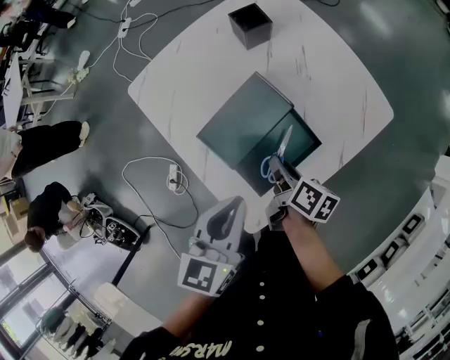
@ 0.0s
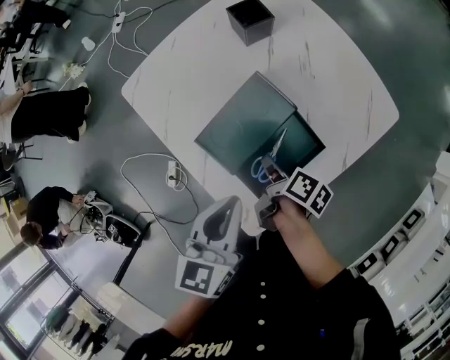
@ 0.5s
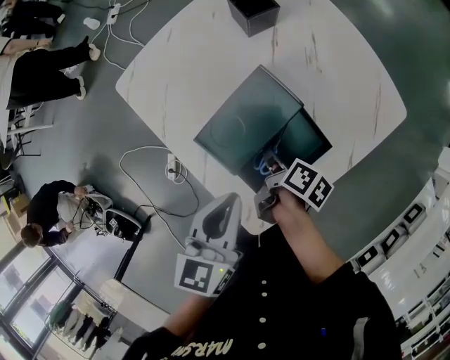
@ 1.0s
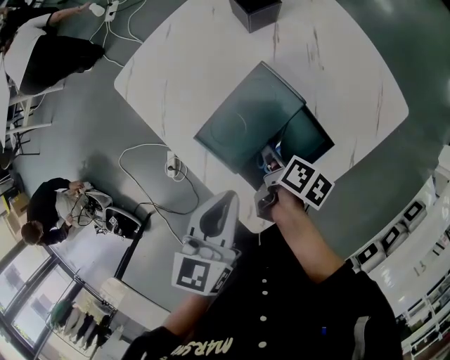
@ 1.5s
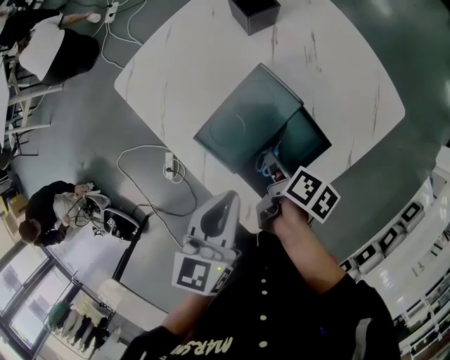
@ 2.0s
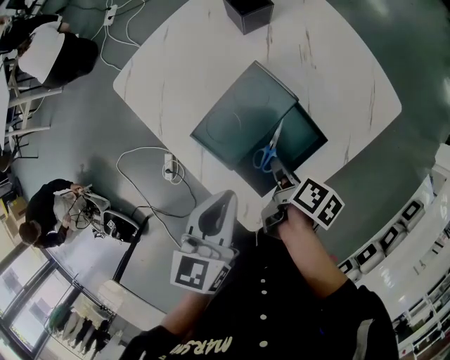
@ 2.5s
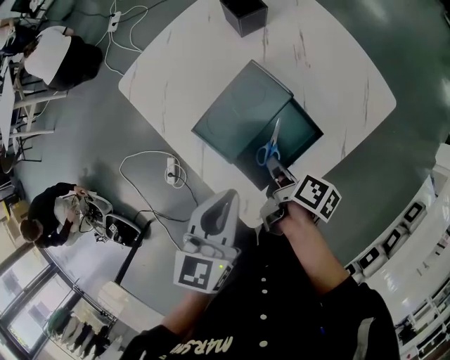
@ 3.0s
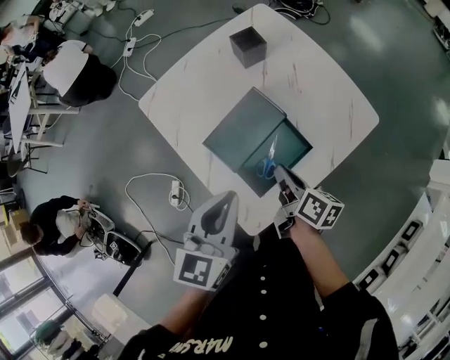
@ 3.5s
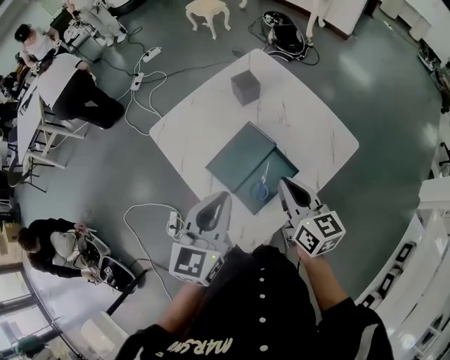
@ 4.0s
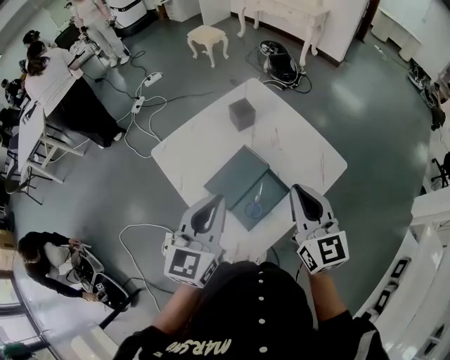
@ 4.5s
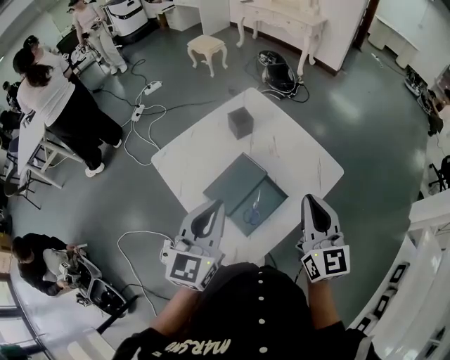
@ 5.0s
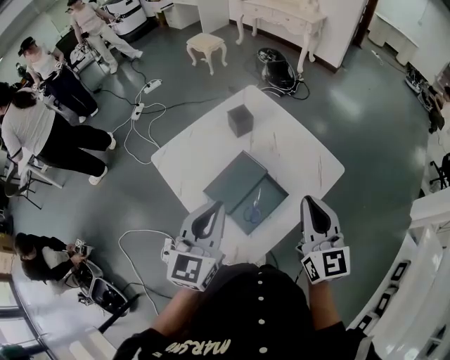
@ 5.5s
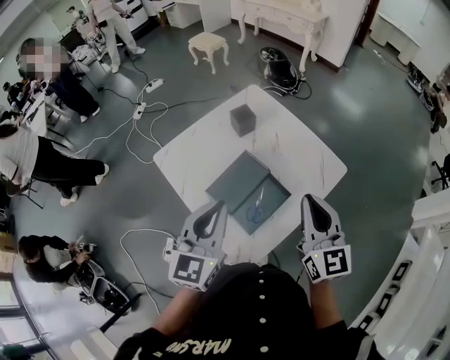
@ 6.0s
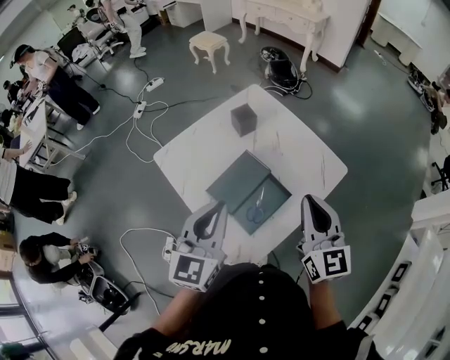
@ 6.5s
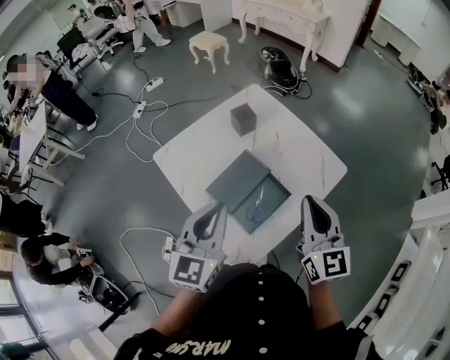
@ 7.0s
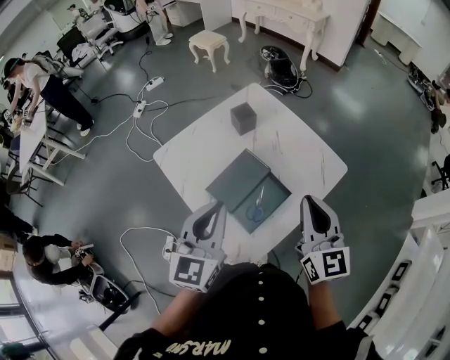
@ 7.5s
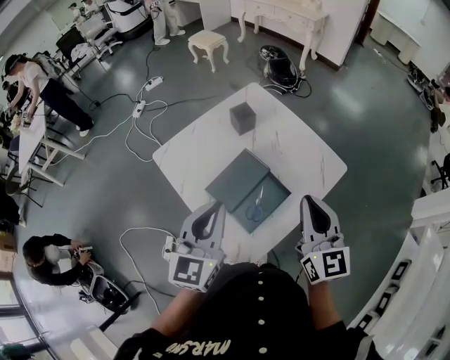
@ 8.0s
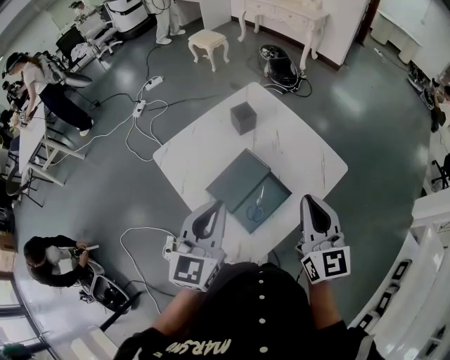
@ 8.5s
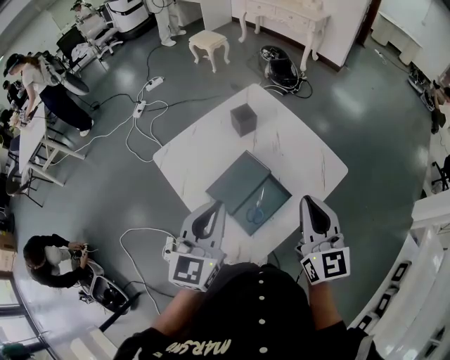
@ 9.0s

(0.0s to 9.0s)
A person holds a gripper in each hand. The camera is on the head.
0.0s - 2.0s: The right gripper swivels approximately 20 degrees, and opens its fingers. Meanwhile the left gripper shifts by approximately 5 cm.
2.0s - 4.5s: The right gripper moves upward, some 35 cm, twists about 70 degrees counterclockwise, seen from behind, and closes, while the left gripper goes roughly 20 cm upward, and rotates roughly 30 degrees.
4.5s - 7.0s: The grippers make only small movements.
7.0s - 9.0s: Both grippers stay about where they are.

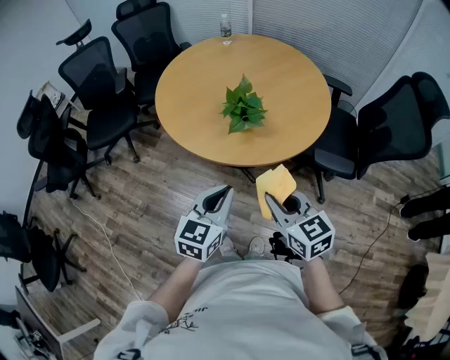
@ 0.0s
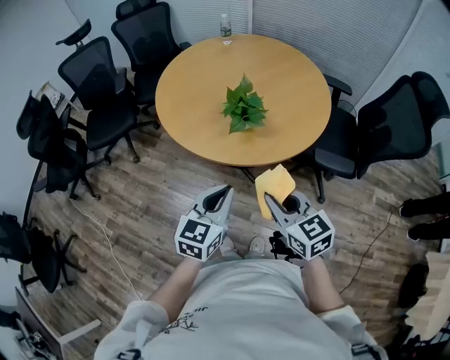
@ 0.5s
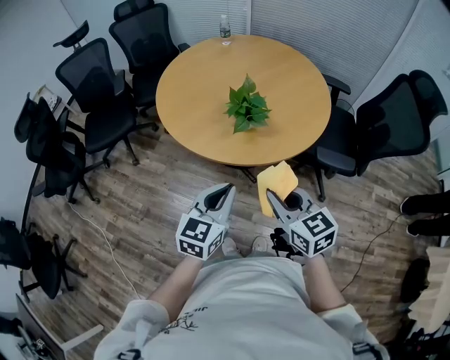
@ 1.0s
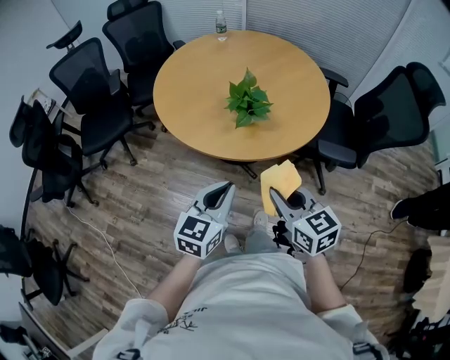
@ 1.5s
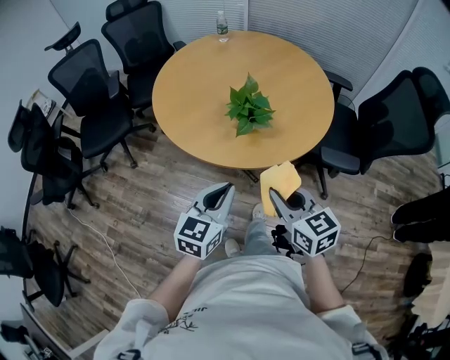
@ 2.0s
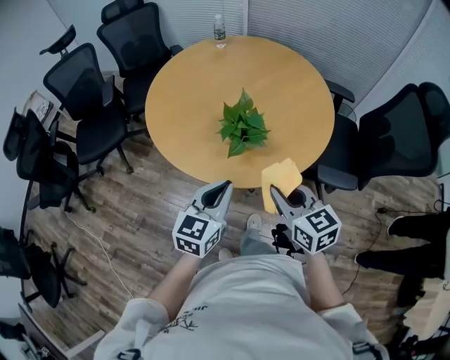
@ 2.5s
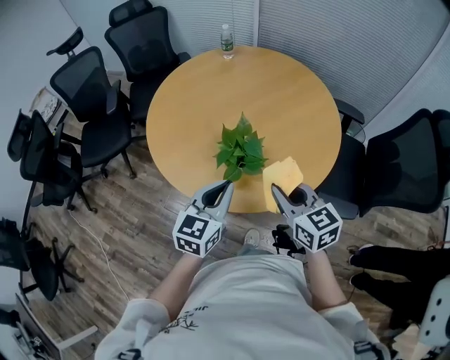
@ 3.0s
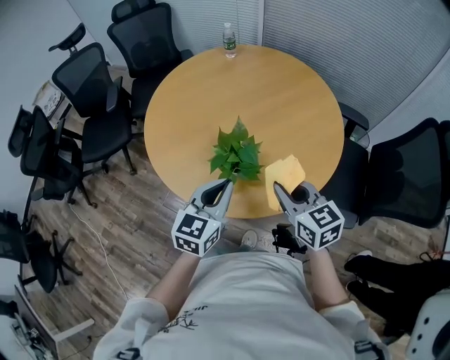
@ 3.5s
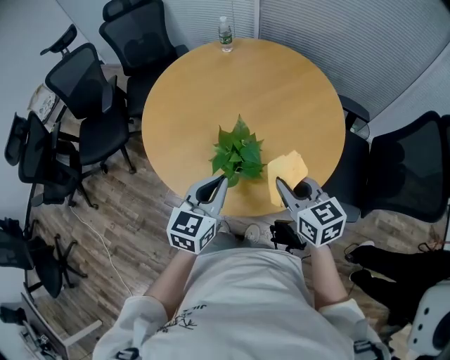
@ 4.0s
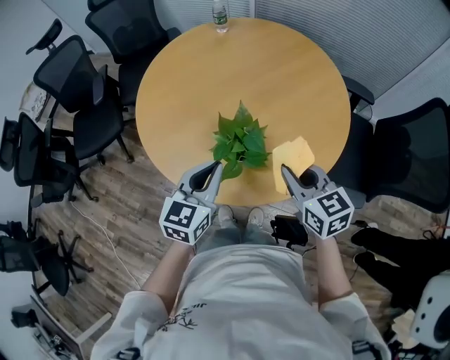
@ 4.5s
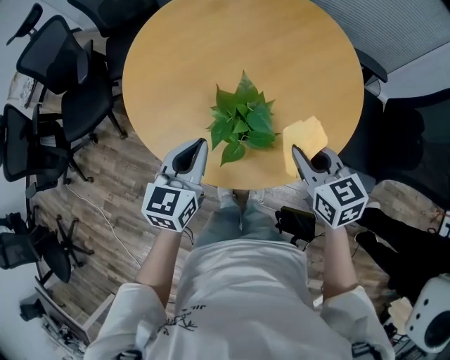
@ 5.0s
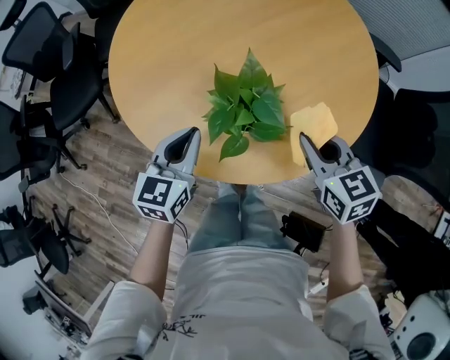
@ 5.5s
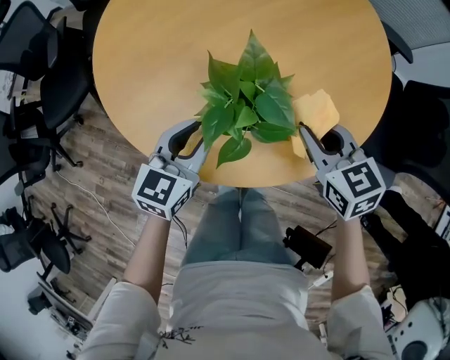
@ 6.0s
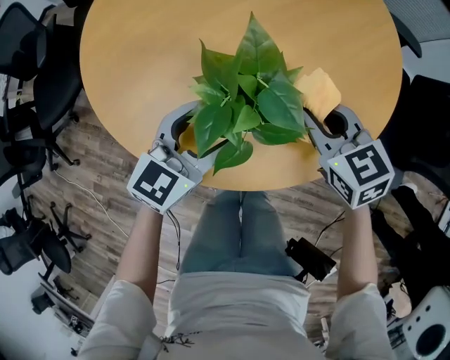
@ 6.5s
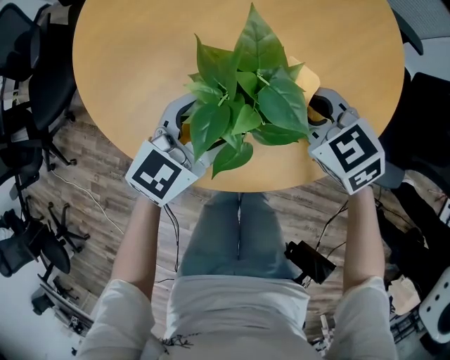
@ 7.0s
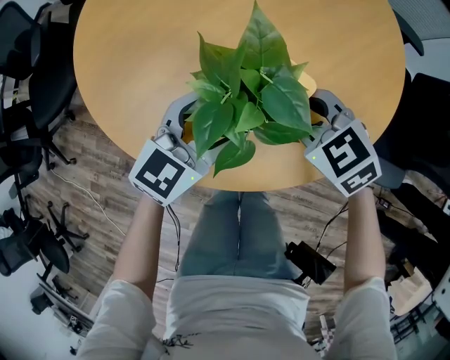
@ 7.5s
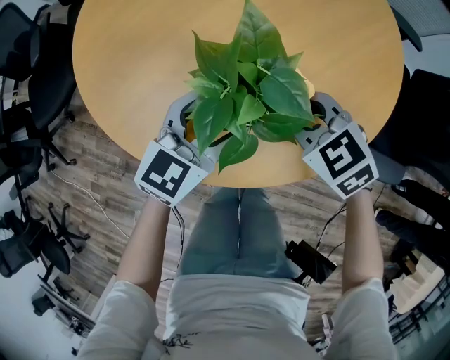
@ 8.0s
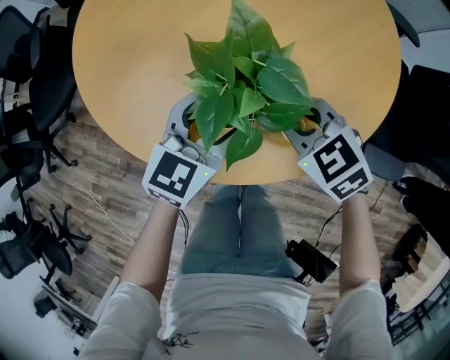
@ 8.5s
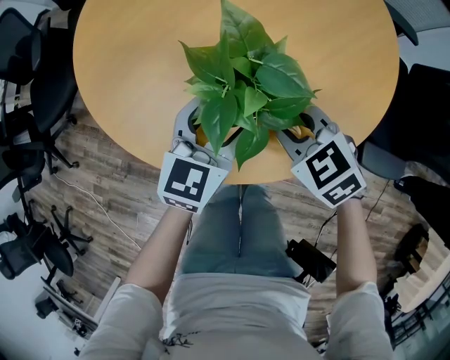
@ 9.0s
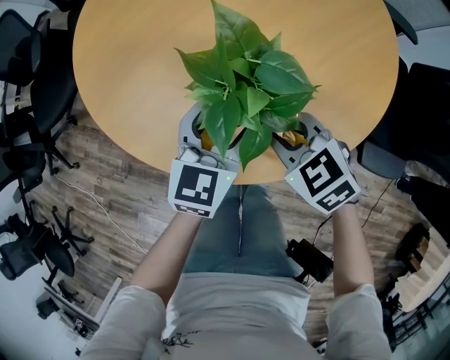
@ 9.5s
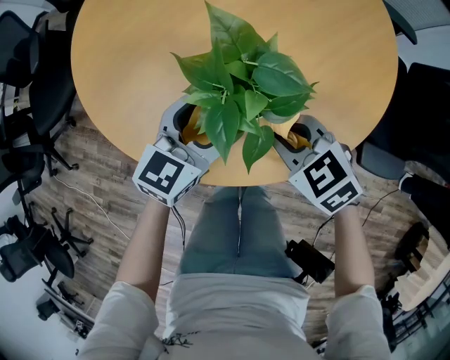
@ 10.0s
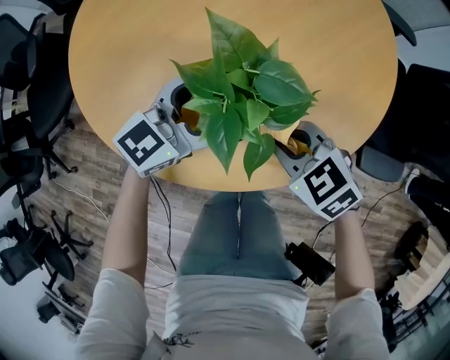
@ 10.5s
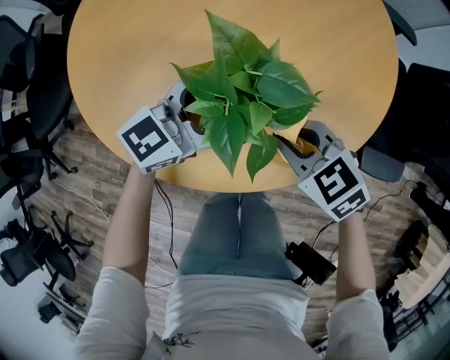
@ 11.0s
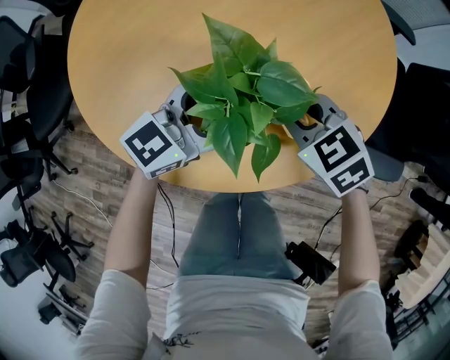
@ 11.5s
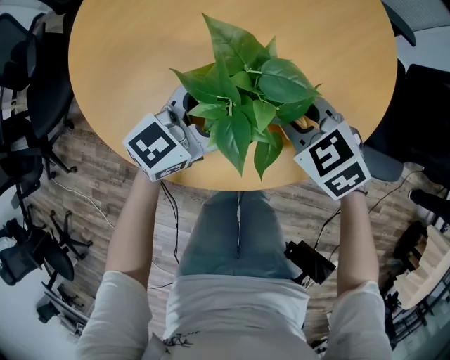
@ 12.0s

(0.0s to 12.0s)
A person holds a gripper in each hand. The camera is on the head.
0.0s - 2.0s: The right gripper shifts by some 5 cm. Meanwhile the left gripper changes place by roughly 5 cm.
2.0s - 4.0s: The left gripper goes approximately 20 cm forward, while the right gripper is displaced forward and to the right by some 25 cm.
4.0s - 6.0s: The two grippers go about 20 cm downward and forward.
6.0s - 8.0s: The left gripper moves to the right, approximately 5 cm, and opens up. The right gripper heads downward and to the left, covering approximately 10 cm, and rotates approximately 30 degrees.
8.0s - 10.0s: The right gripper changes place by roughly 5 cm.
10.0s - 12.0s: The right gripper heads forward, covering roughly 5 cm.

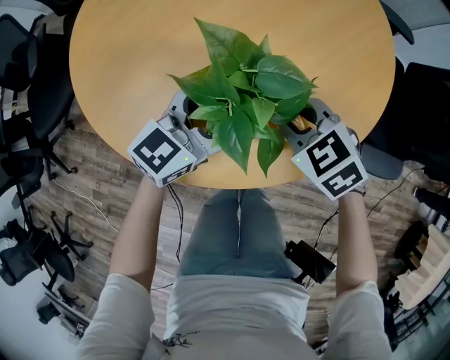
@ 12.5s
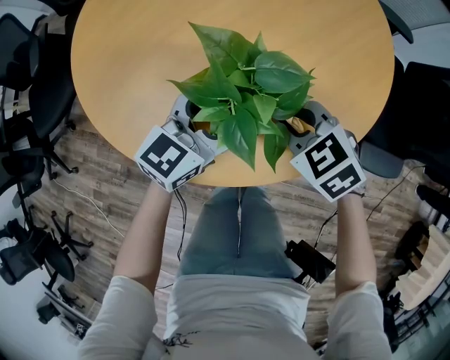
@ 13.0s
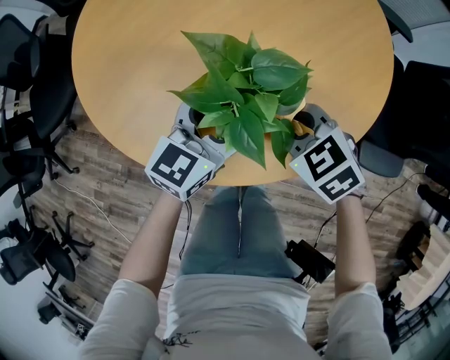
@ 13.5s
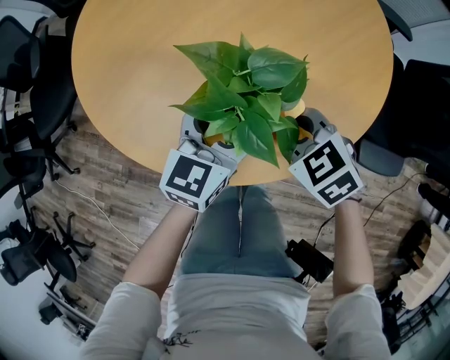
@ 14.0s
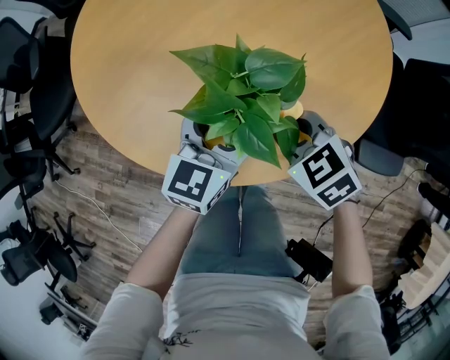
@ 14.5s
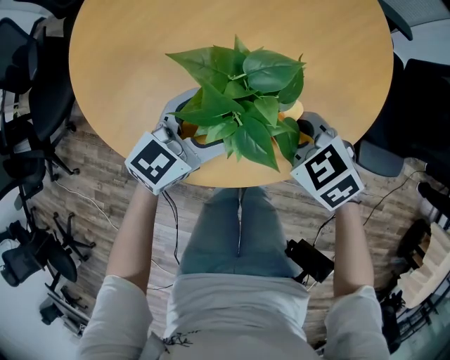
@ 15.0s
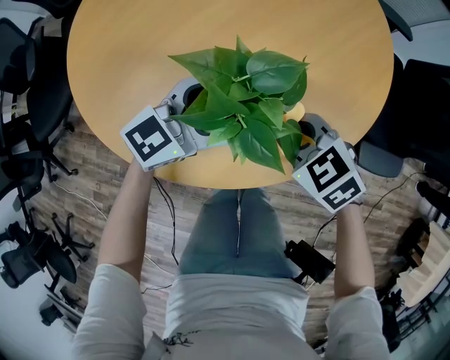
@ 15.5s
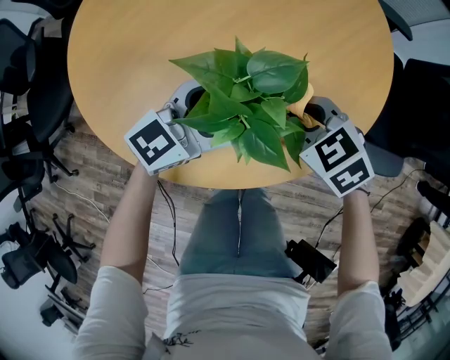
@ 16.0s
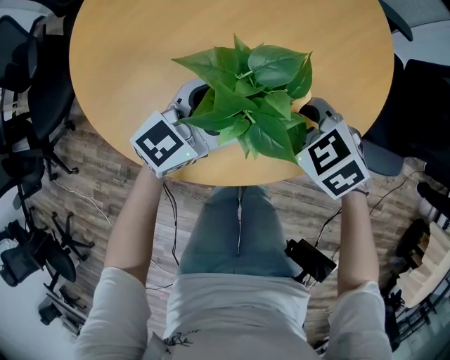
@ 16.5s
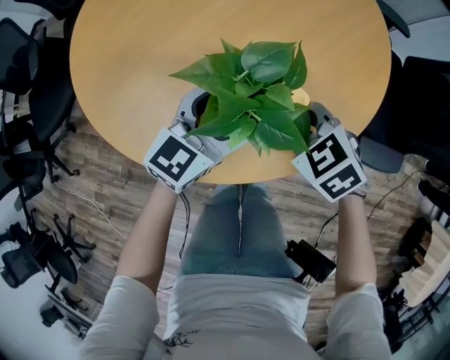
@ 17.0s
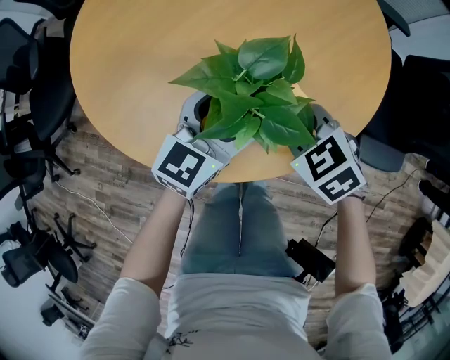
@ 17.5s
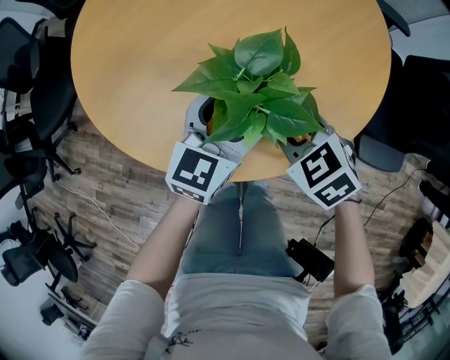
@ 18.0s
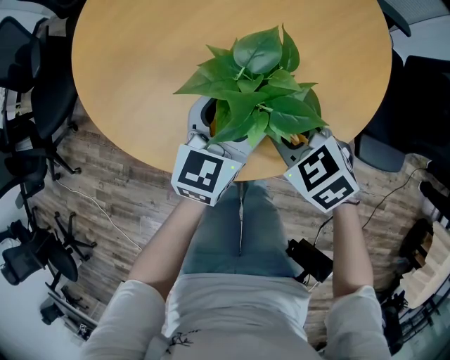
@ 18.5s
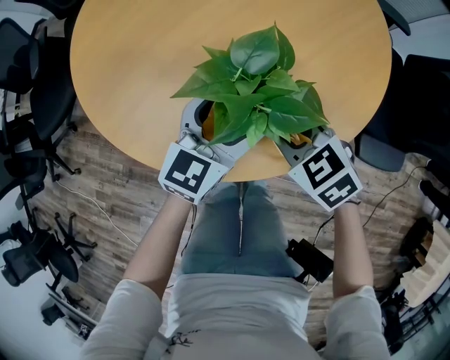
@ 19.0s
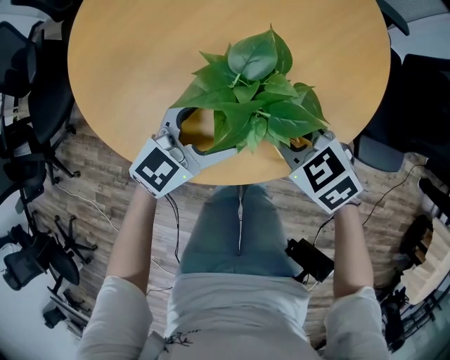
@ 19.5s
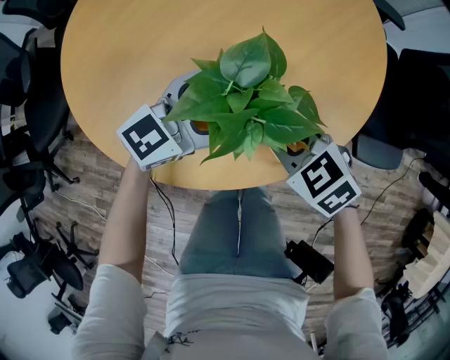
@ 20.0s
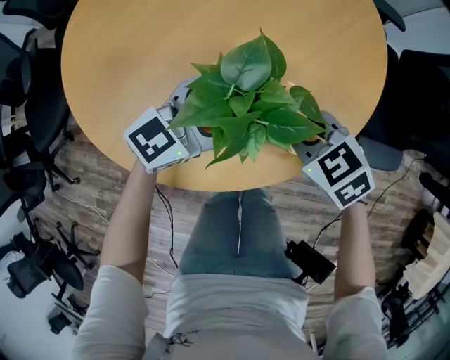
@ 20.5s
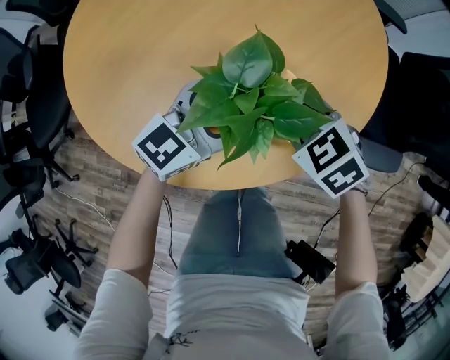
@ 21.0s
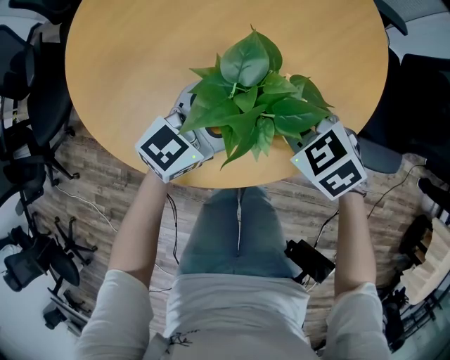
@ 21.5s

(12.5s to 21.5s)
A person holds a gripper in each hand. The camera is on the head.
12.5s - 14.5s: The left gripper turns by roughly 20 degrees.
17.0s - 19.5s: The grippers move only a little.
19.5s - 21.5s: The left gripper moves some 5 cm.
